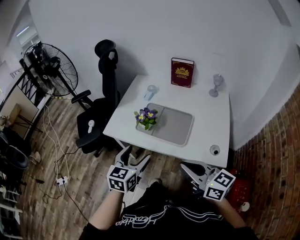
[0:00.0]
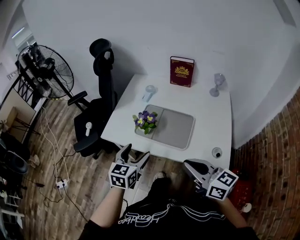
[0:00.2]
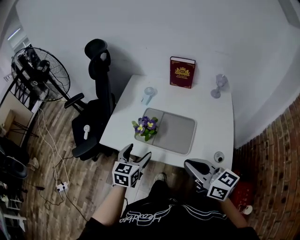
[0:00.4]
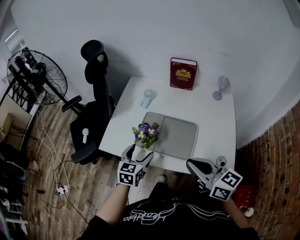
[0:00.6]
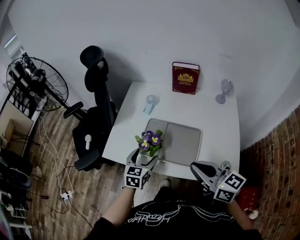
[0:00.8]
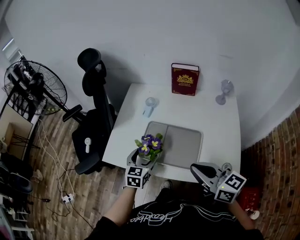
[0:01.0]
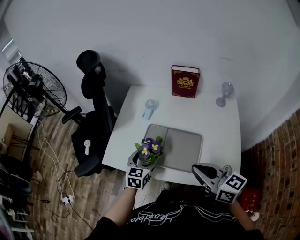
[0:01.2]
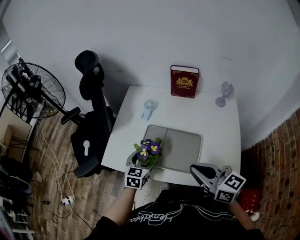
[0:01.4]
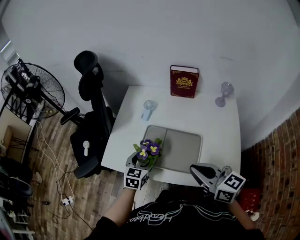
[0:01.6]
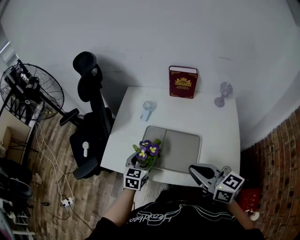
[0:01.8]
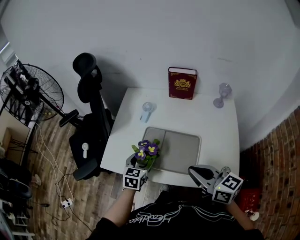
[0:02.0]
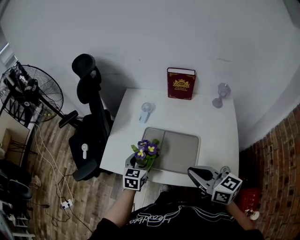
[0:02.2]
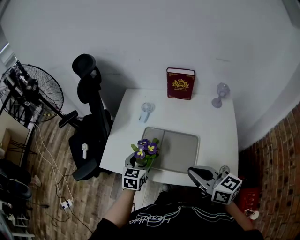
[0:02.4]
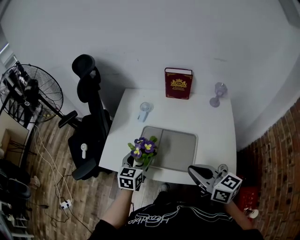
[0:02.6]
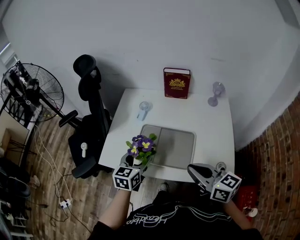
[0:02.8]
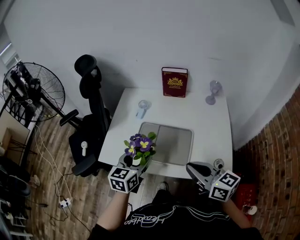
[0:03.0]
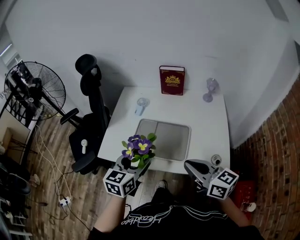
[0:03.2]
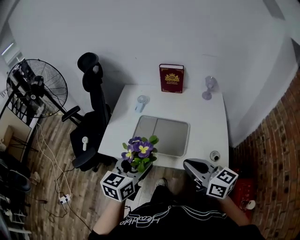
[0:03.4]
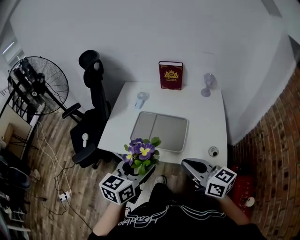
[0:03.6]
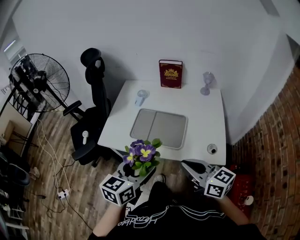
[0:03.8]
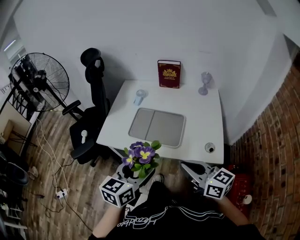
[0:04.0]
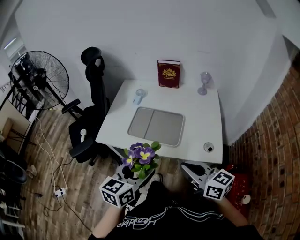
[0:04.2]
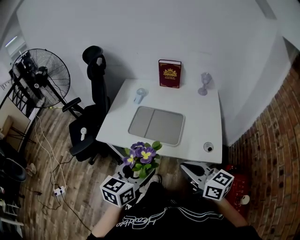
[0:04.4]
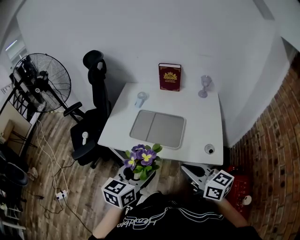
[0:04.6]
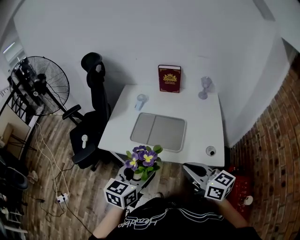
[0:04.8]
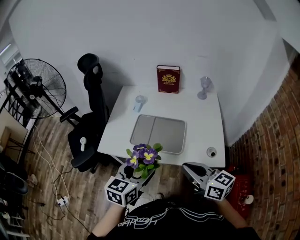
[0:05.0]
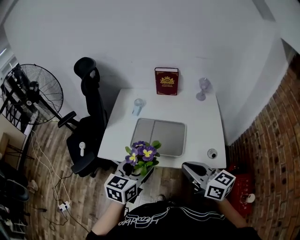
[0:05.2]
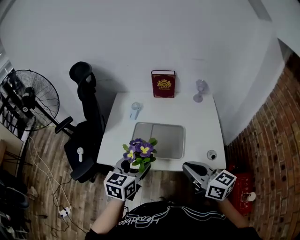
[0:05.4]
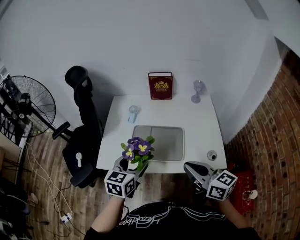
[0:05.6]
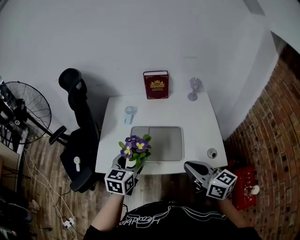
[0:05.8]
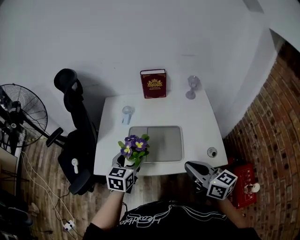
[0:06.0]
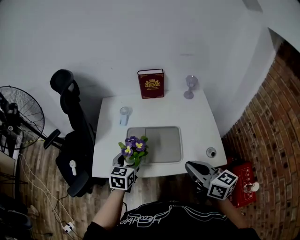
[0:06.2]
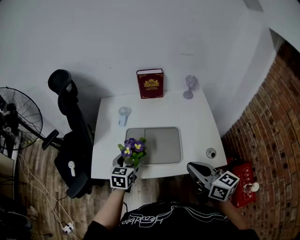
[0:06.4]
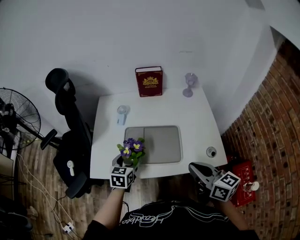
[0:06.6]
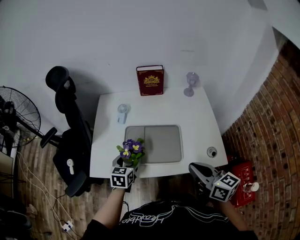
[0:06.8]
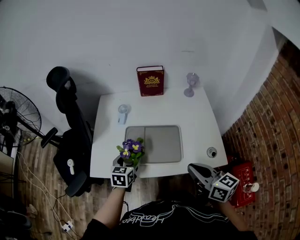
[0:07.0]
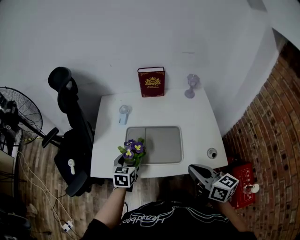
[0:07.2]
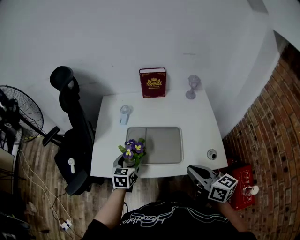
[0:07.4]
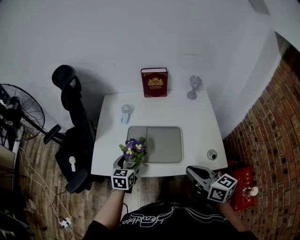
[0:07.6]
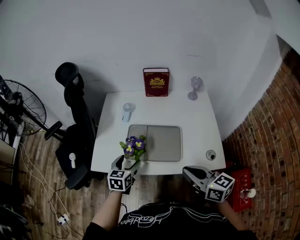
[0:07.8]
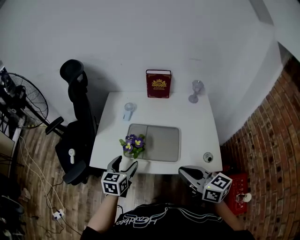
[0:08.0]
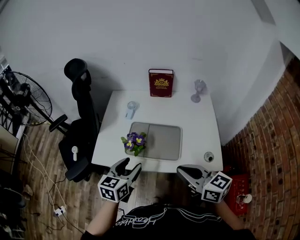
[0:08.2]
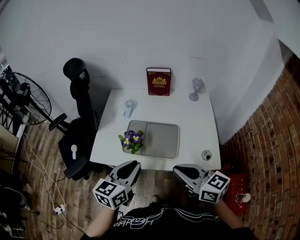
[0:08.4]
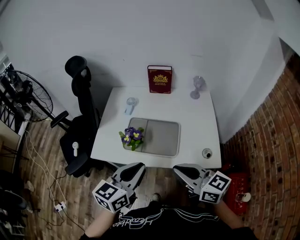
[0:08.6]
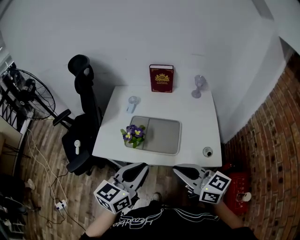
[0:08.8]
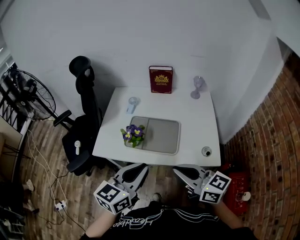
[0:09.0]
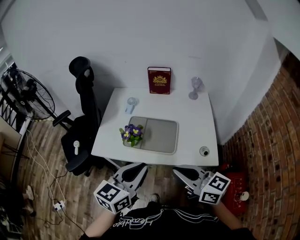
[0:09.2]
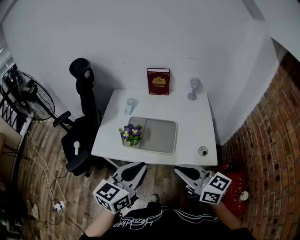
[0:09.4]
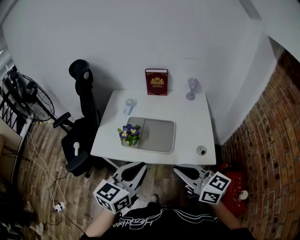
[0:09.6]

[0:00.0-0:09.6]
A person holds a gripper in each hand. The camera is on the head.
0:00.0 to 0:01.6: The left gripper moves forward and downward, roughly 25 cm. The right gripper moves forward, approximately 15 cm.
0:01.6 to 0:03.2: The right gripper shifts some 5 cm backward. Meanwhile the left gripper goes about 20 cm upward and backward.
0:03.2 to 0:04.8: The right gripper goes some 10 cm backward. The left gripper shifts some 15 cm backward.
0:04.8 to 0:06.4: The left gripper shifts about 25 cm forward and downward, while the right gripper goes about 10 cm forward.
0:06.4 to 0:08.0: The left gripper shifts about 5 cm backward.
0:08.0 to 0:09.6: The left gripper travels upward, backward and to the right by approximately 25 cm, changes its angle by some 20 degrees, and closes; the right gripper is displaced backward and upward by some 10 cm.

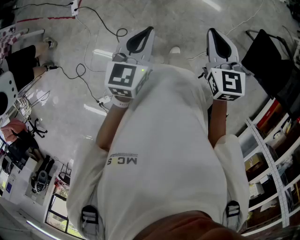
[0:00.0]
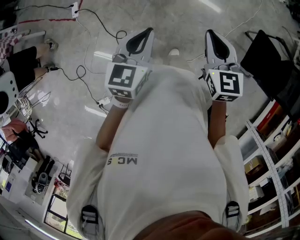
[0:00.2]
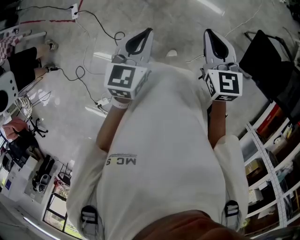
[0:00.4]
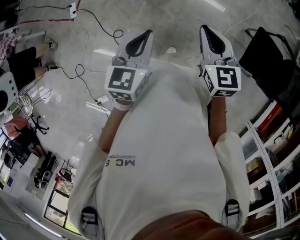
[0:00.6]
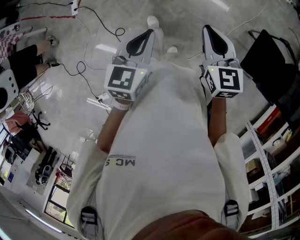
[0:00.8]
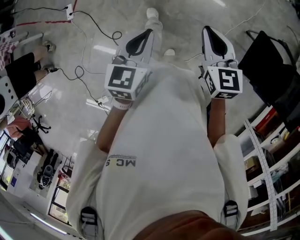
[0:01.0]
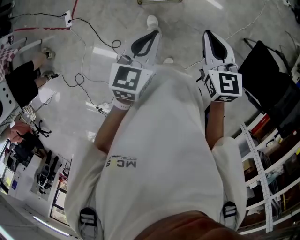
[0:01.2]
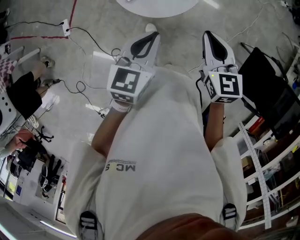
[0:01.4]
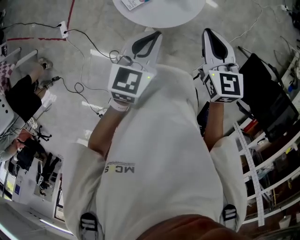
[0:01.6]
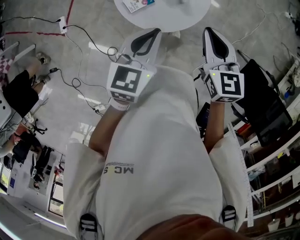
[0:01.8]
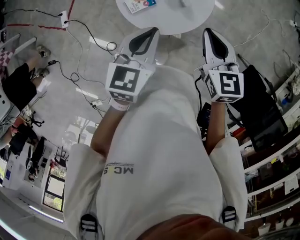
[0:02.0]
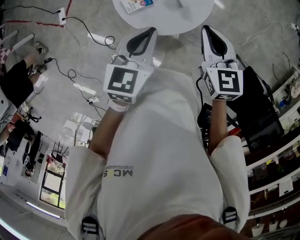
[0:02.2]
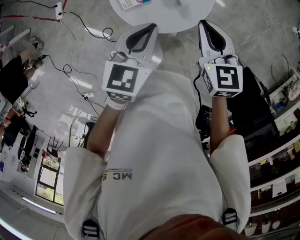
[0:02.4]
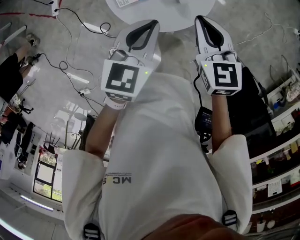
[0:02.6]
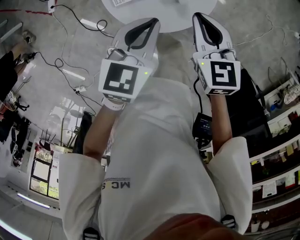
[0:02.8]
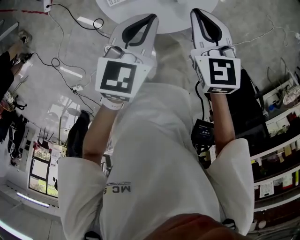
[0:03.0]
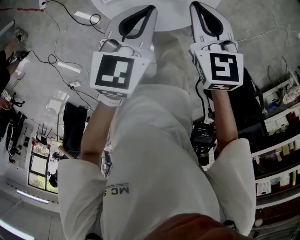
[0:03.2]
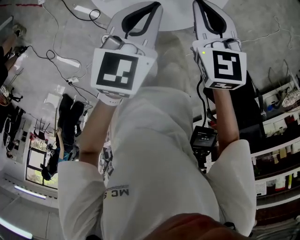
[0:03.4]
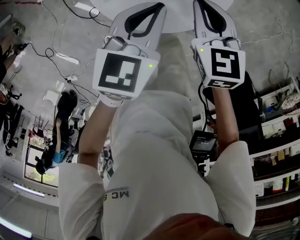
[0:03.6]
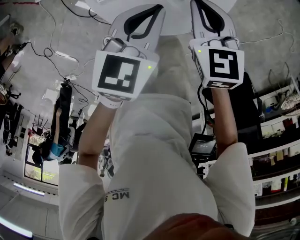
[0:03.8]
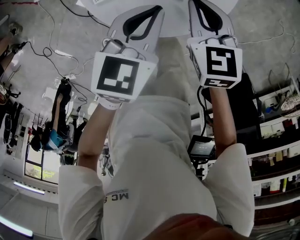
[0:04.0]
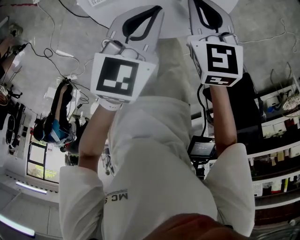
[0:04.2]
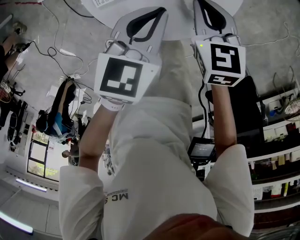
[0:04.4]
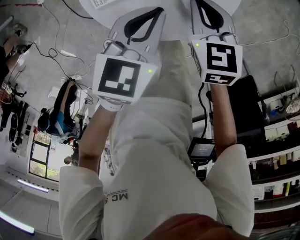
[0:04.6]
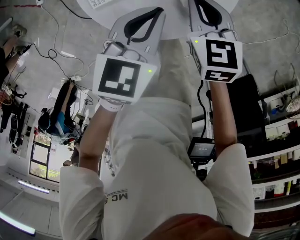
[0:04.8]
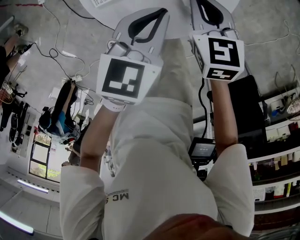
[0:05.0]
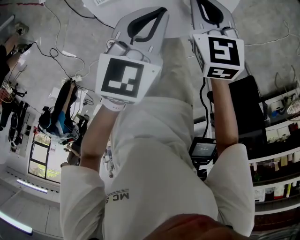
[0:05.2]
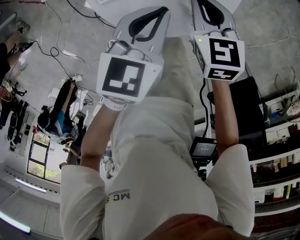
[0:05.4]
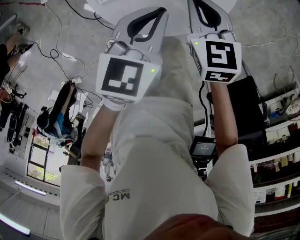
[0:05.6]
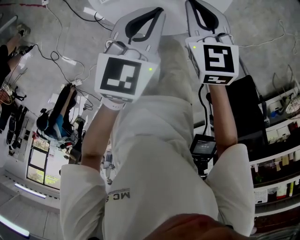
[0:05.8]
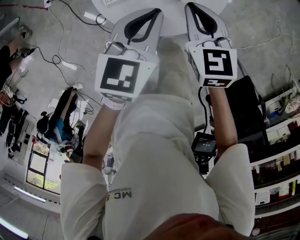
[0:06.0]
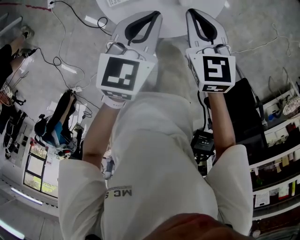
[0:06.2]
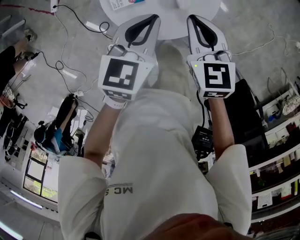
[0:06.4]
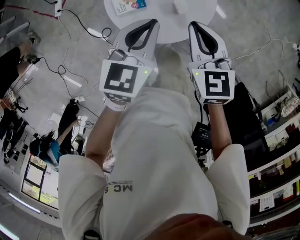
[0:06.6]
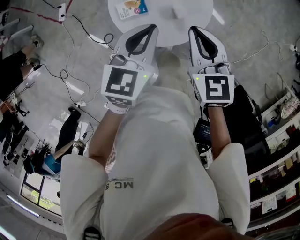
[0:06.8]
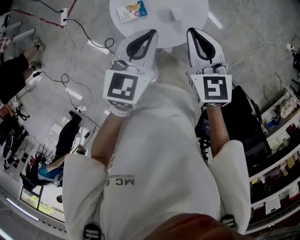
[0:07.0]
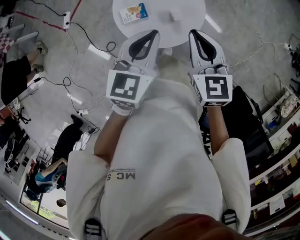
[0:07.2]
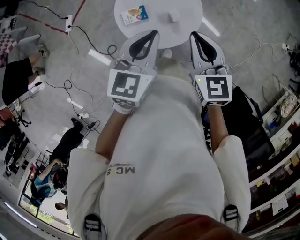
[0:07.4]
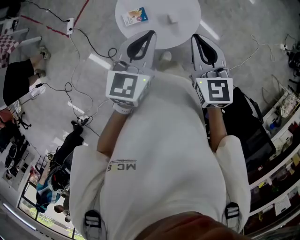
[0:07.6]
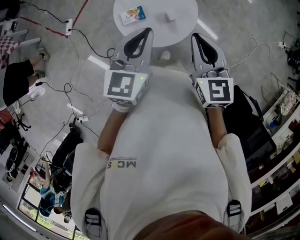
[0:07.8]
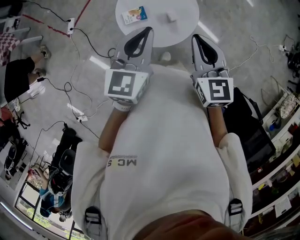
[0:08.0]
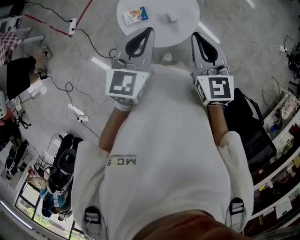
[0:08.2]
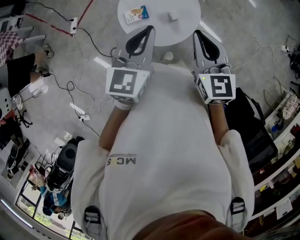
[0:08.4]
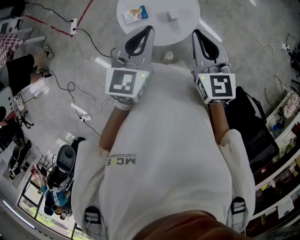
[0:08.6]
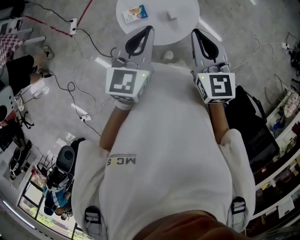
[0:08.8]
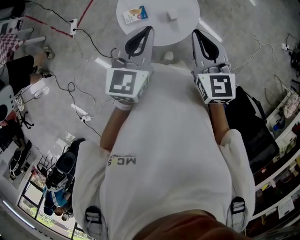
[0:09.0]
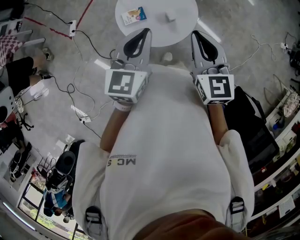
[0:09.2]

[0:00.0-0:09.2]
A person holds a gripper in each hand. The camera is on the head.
0:00.0 to 0:01.6: The pair of grippers is taken forward, roughly 40 cm.
0:01.6 to 0:03.0: Both grippers move forward and downward, roughly 20 cm. The right gripper swivels some 20 degrees.
0:03.0 to 0:04.6: The two grippers go roughly 15 cm downward.
0:04.6 to 0:06.2: The two grippers go about 10 cm upward.
0:06.2 to 0:07.6: The right gripper shifts some 30 cm upward and backward; the left gripper shifts some 25 cm upward.
0:07.6 to 0:09.2: The grippers move only a little.

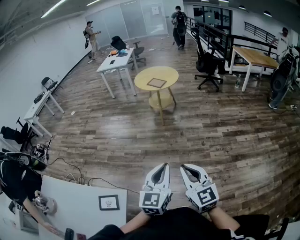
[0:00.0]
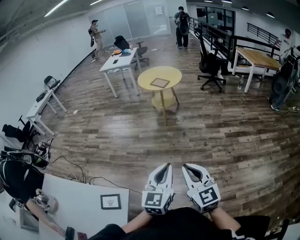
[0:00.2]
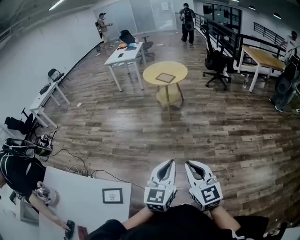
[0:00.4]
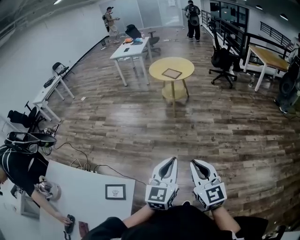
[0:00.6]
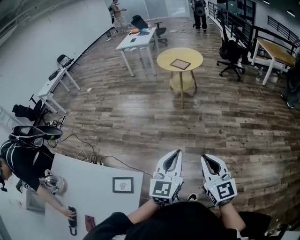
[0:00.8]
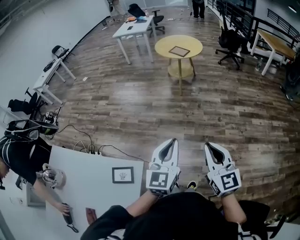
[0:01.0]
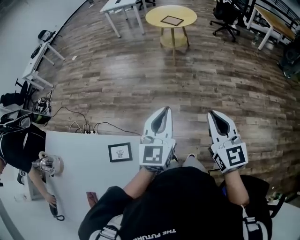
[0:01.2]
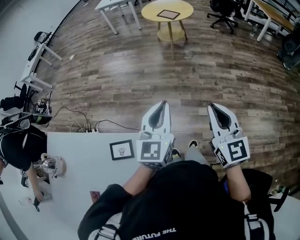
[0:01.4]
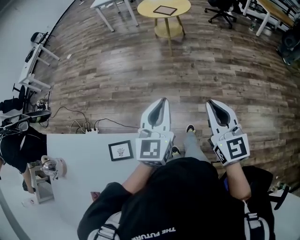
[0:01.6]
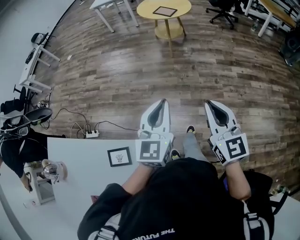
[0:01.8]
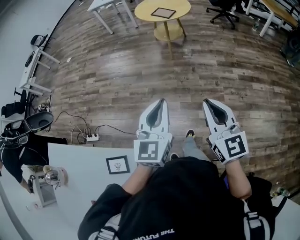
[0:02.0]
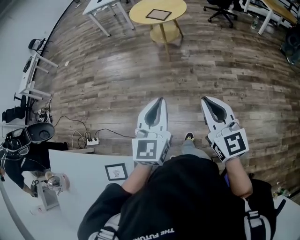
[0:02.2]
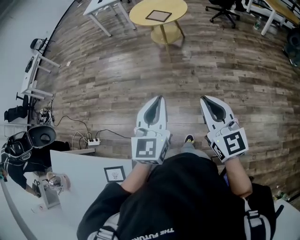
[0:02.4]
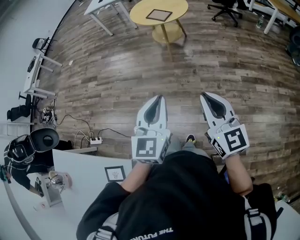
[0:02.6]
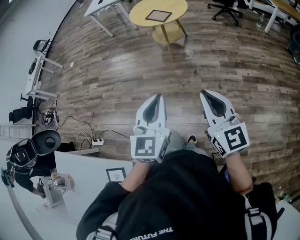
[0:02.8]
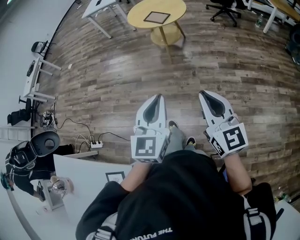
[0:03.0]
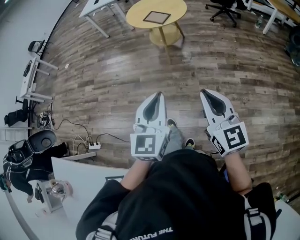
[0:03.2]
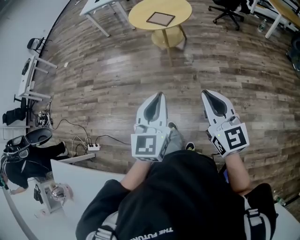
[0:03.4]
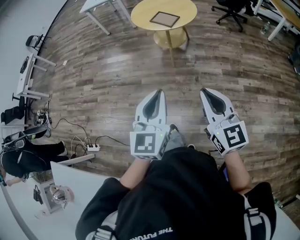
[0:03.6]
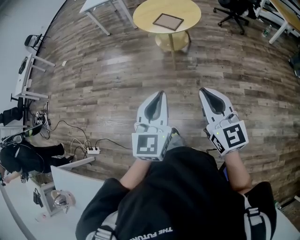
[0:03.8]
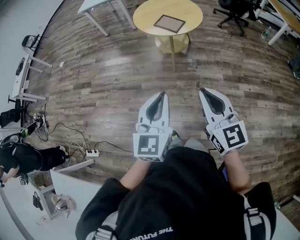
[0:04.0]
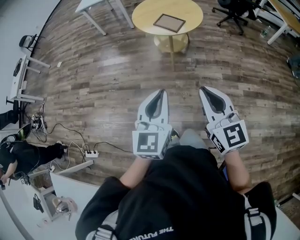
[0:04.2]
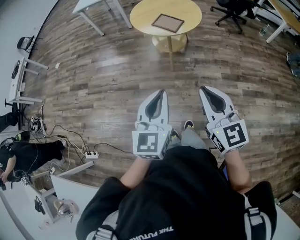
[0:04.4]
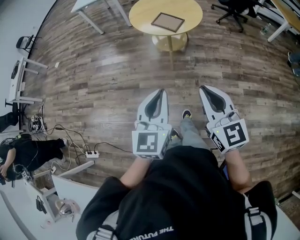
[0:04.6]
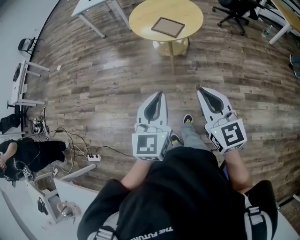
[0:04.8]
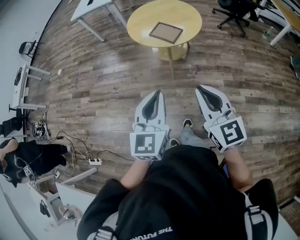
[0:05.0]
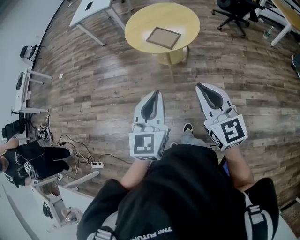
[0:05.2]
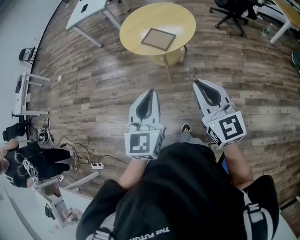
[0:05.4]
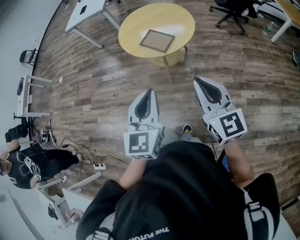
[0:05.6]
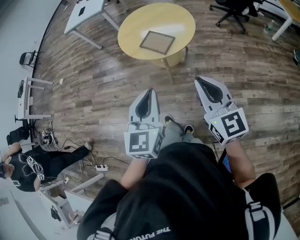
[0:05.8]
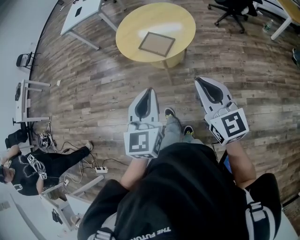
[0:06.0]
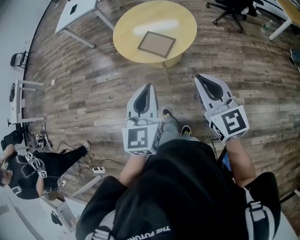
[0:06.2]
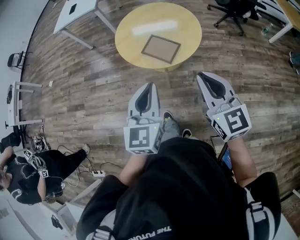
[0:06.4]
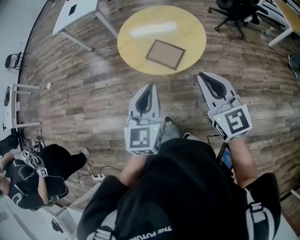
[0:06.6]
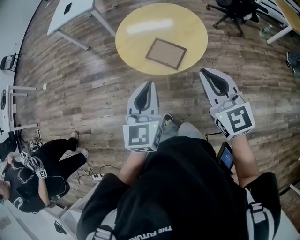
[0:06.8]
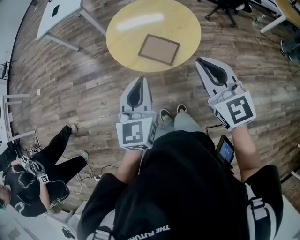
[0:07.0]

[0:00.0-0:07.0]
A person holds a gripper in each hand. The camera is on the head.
0:00.0 to 0:01.4: The left gripper shifts roughly 10 cm to the left.
0:01.4 to 0:02.8: The grippers both shift forward and to the right by about 25 cm.
0:02.8 to 0:04.2: The grippers both shift forward by about 25 cm.
0:04.2 to 0:05.6: The grippers both shift forward and to the right by about 20 cm.
0:05.6 to 0:07.0: Both grippers move forward, approximately 20 cm.
